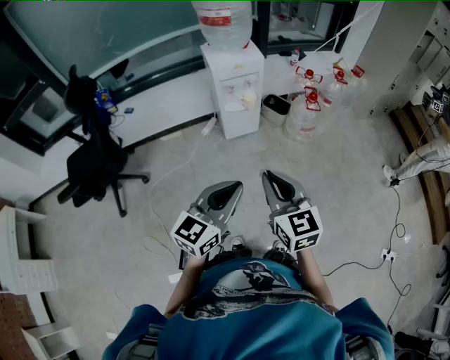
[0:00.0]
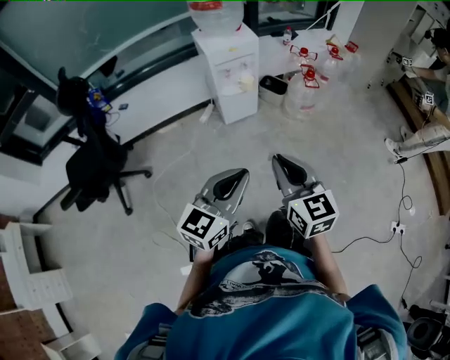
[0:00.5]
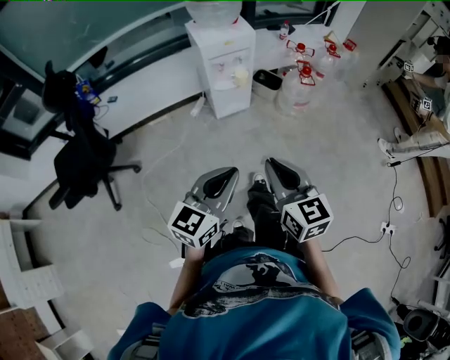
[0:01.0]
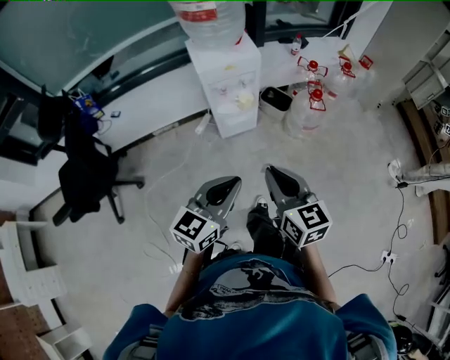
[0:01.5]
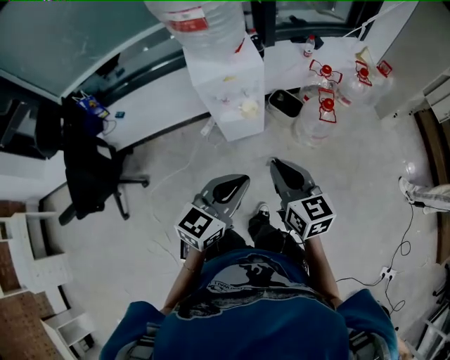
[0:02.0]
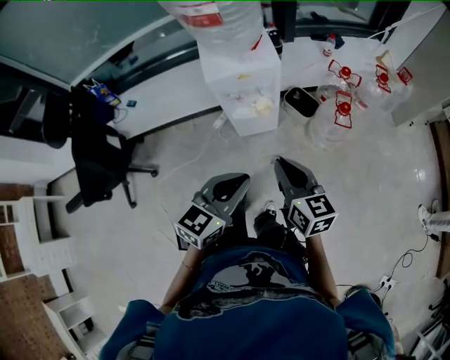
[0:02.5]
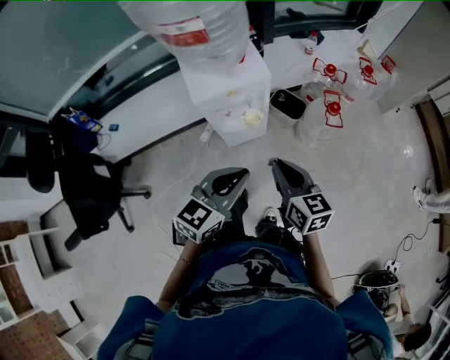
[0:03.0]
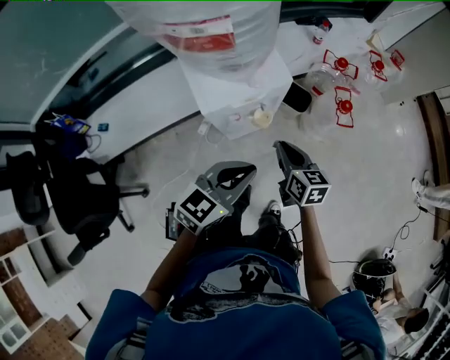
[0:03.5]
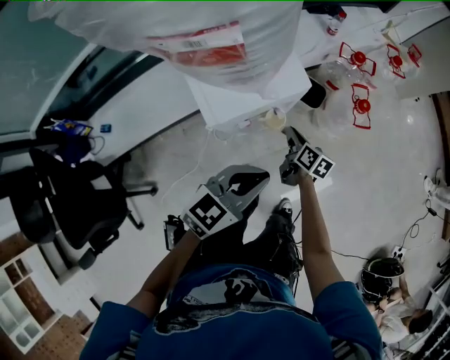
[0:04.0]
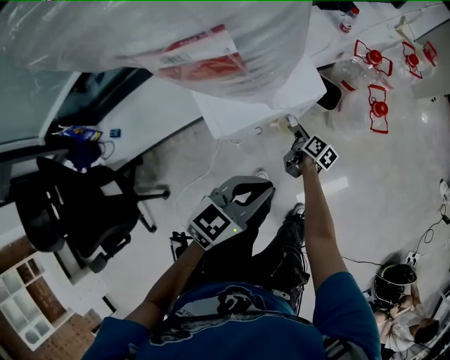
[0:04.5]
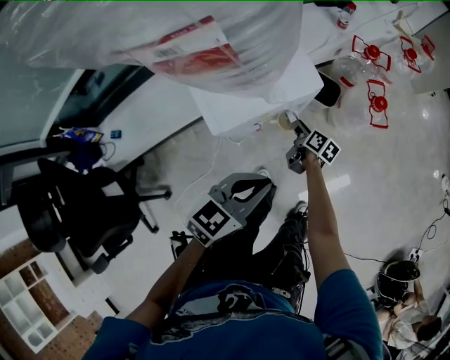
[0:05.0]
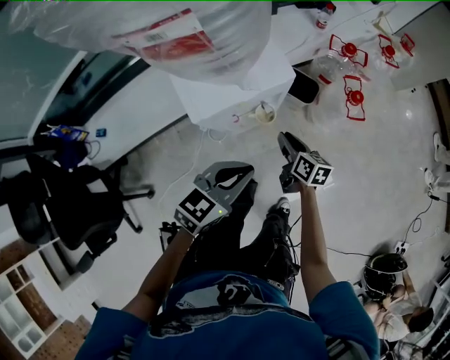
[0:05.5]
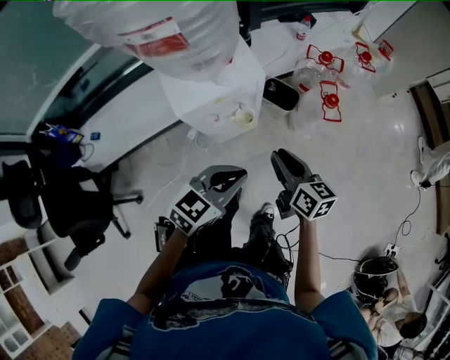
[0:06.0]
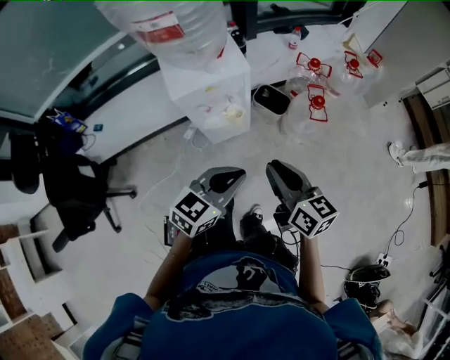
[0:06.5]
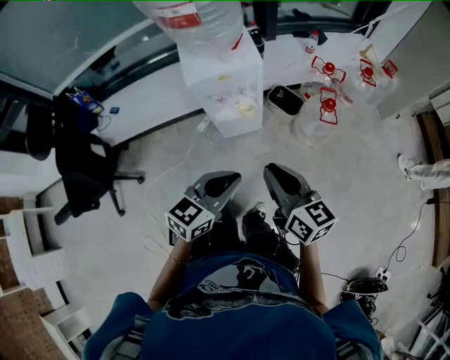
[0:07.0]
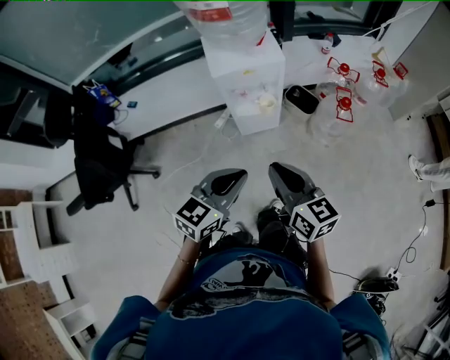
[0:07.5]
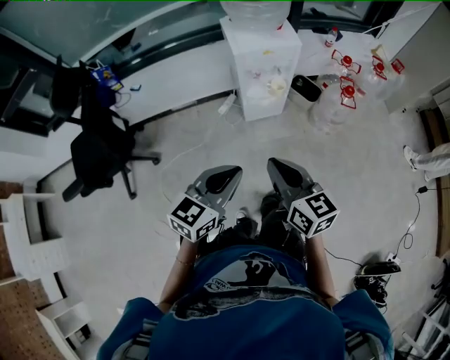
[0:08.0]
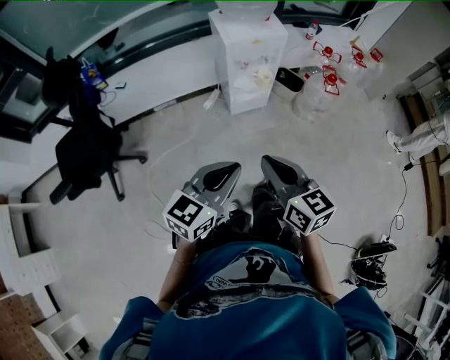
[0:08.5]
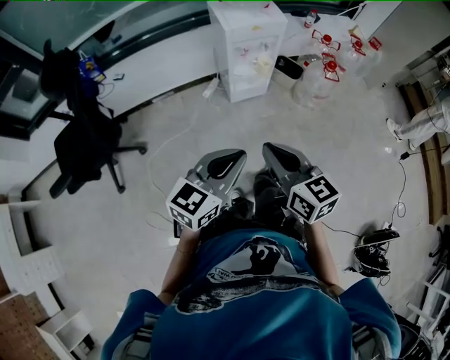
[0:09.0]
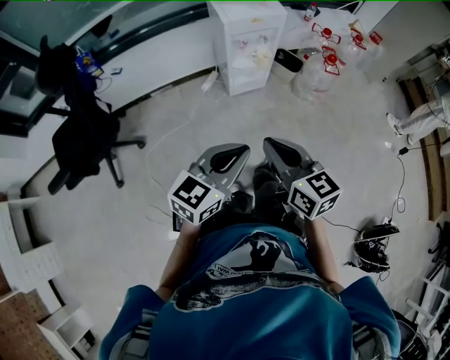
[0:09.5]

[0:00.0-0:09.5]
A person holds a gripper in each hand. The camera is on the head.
0:00.0 to 0:02.0: Both grippers move forward, about 30 cm.
0:02.0 to 0:04.0: The left gripper heads forward and to the left, covering about 25 cm, and turns by about 30 degrees, while the right gripper goes roughly 40 cm forward and downward, and rolls clockwise, seen from behind, by roughly 40 degrees.
0:04.0 to 0:05.5: The right gripper travels downward and back again, approximately 10 cm each way.
0:05.5 to 0:07.5: The right gripper shifts about 40 cm backward and upward, and turns by roughly 40 degrees; the left gripper travels backward and upward by about 25 cm, and changes its angle by roughly 20 degrees.
0:07.5 to 0:09.5: The two grippers go roughly 20 cm backward and to the left.

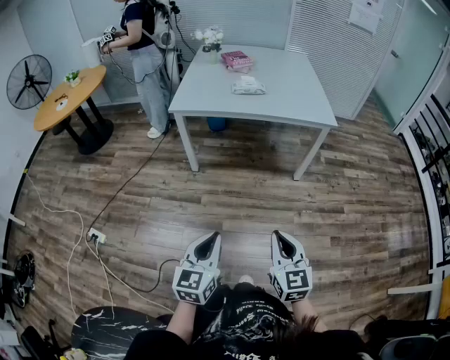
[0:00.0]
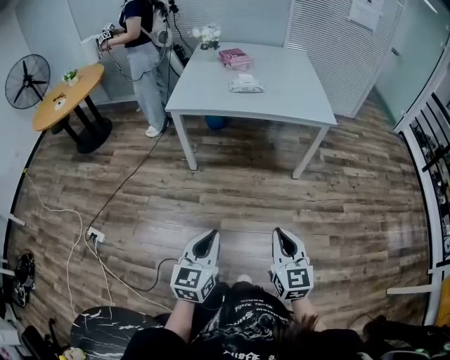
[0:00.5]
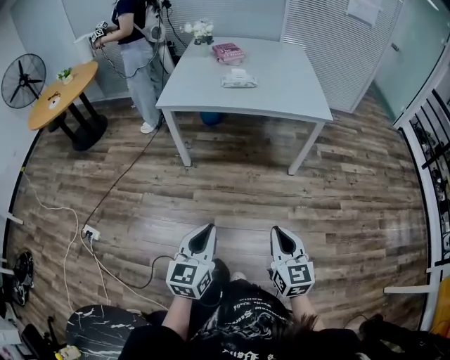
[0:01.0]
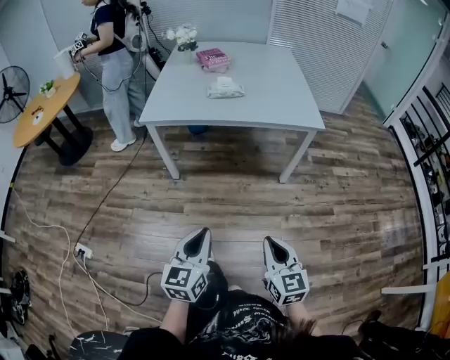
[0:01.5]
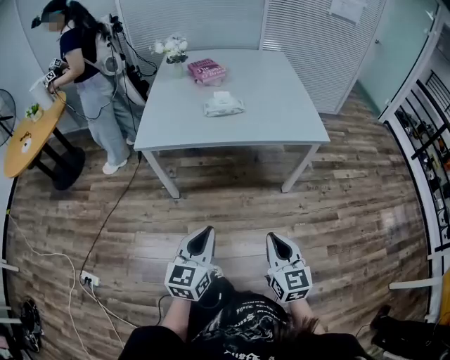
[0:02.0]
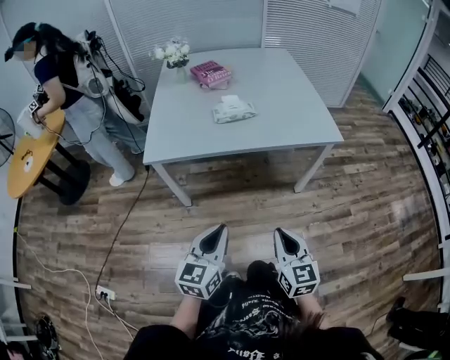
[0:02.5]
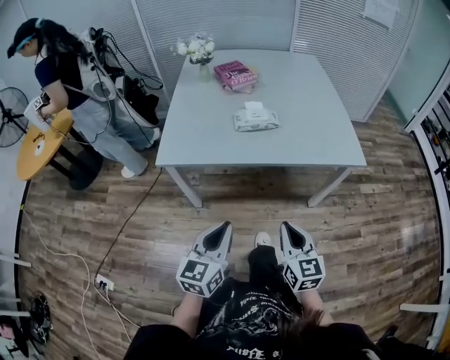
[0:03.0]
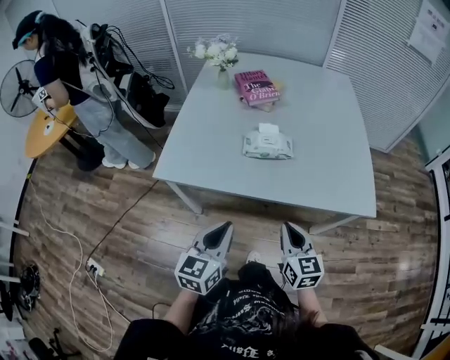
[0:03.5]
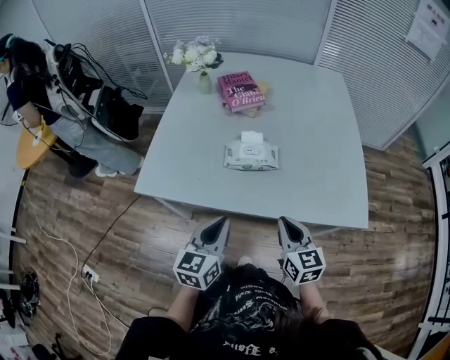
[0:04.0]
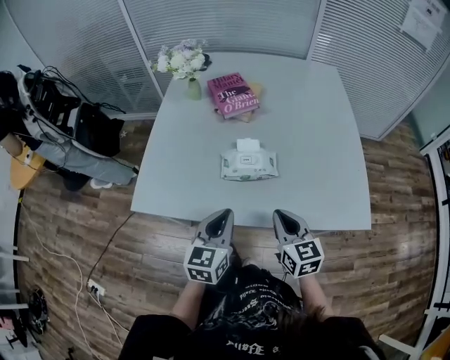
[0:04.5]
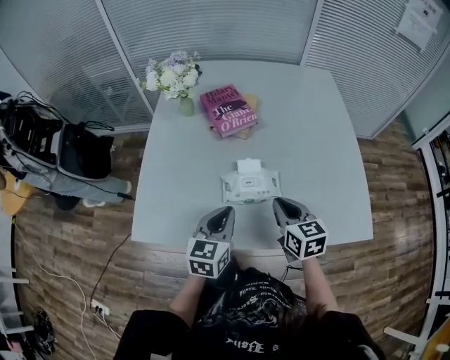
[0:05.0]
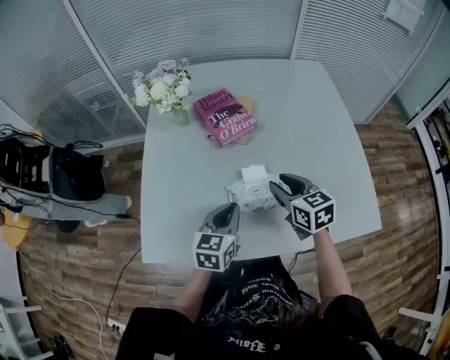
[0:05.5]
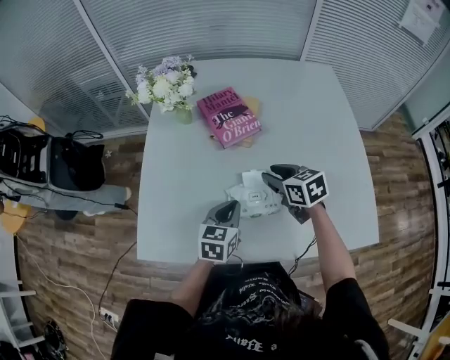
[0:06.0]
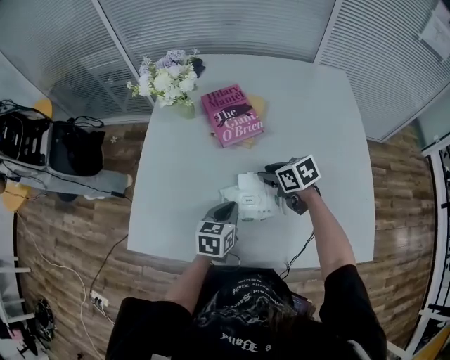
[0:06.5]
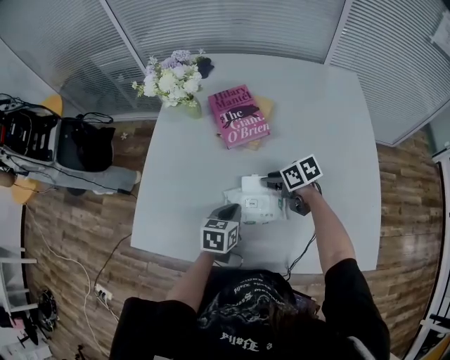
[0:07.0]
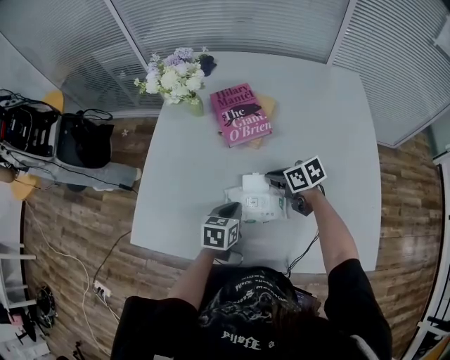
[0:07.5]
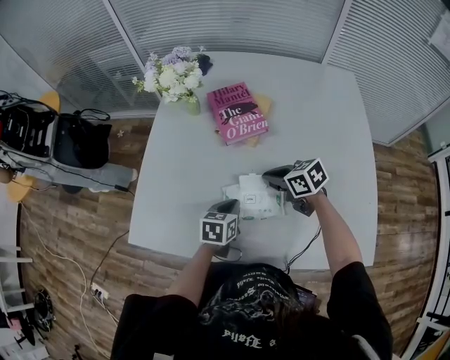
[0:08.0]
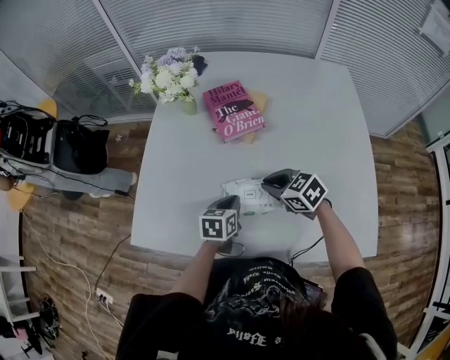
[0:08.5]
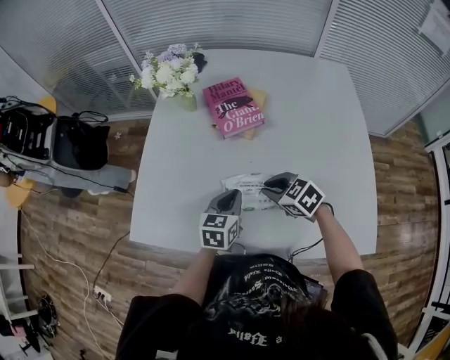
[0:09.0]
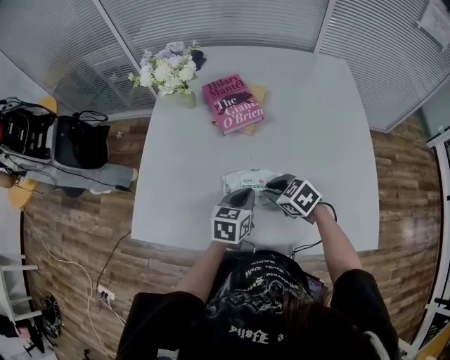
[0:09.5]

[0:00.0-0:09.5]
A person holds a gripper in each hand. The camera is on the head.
0:00.0 to 0:02.0: The two grippers go some 25 cm forward.
0:02.0 to 0:04.0: Both grippers move forward, about 40 cm.
0:04.0 to 0:05.5: The two grippers go about 25 cm forward. The right gripper opens up.
0:05.5 to 0:07.5: Both grippers move downward, some 10 cm. The left gripper swivels approximately 20 degrees; the right gripper rotates approximately 40 degrees, and closes up.
0:07.5 to 0:09.5: The left gripper moves roughly 5 cm, while the right gripper is displaced backward by some 10 cm, and swivels approximately 30 degrees.

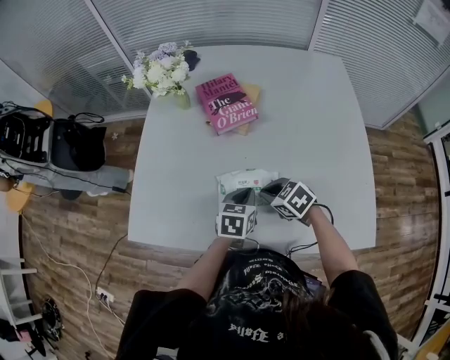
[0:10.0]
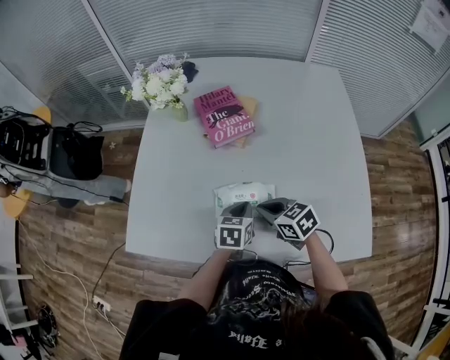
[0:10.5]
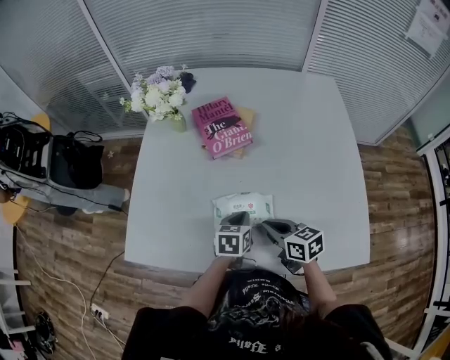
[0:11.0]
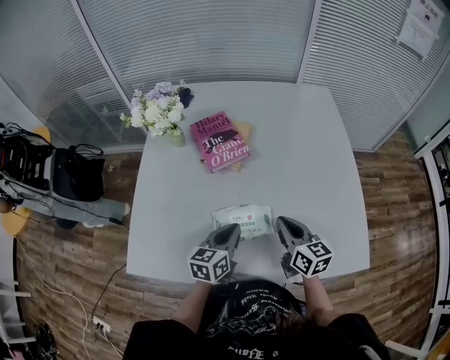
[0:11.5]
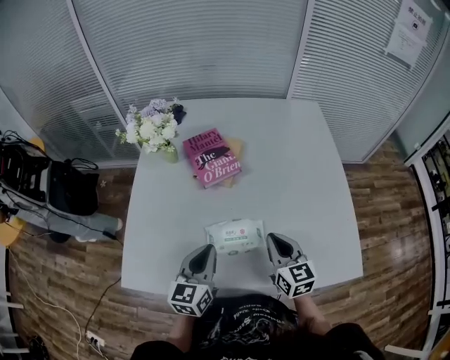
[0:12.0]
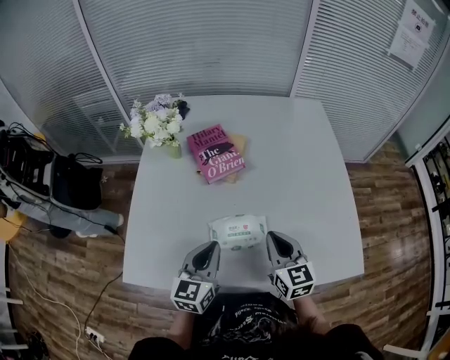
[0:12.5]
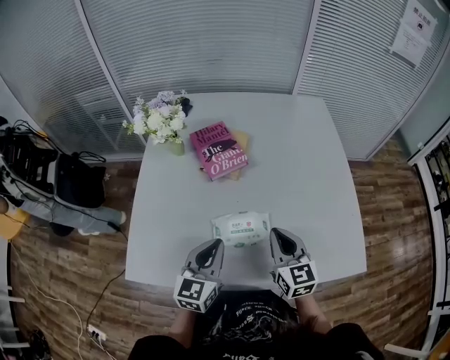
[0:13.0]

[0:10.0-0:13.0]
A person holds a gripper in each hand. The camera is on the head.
0:10.0 to 0:11.5: The right gripper travels upward and to the right by approximately 15 cm, and tips its fingers upward by approximately 30 degrees, while the left gripper goes roughly 5 cm upward.
0:11.5 to 0:13.0: The left gripper travels upward by roughly 5 cm, and turns by approximately 20 degrees. Meanwhile the right gripper moves approximately 5 cm, and changes its angle by about 20 degrees.

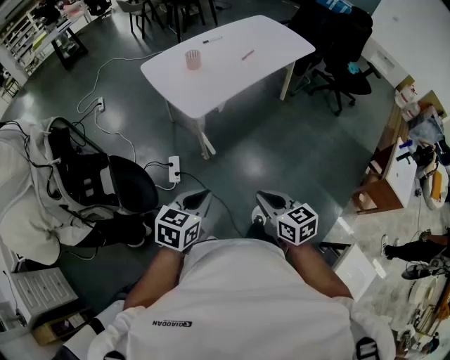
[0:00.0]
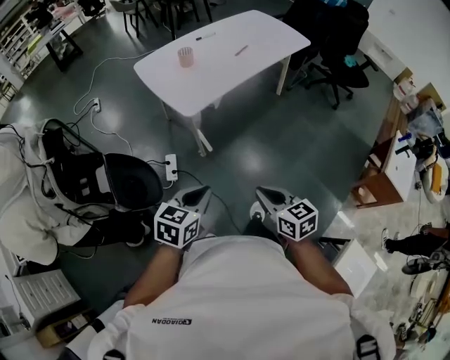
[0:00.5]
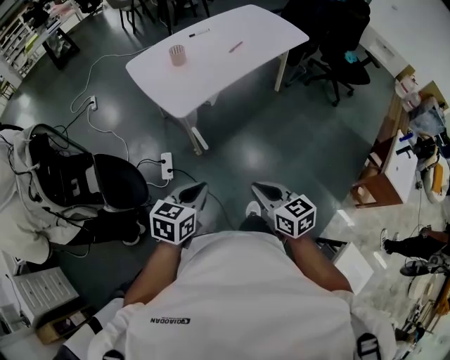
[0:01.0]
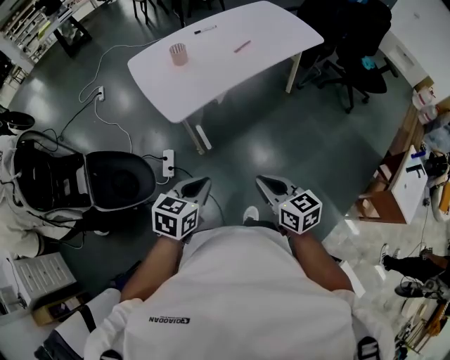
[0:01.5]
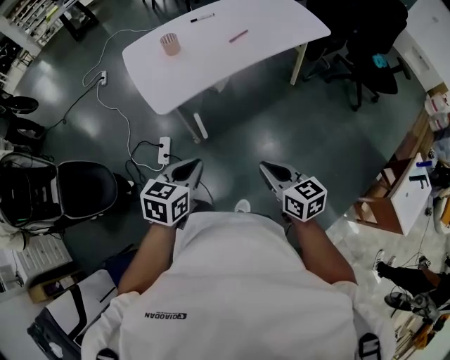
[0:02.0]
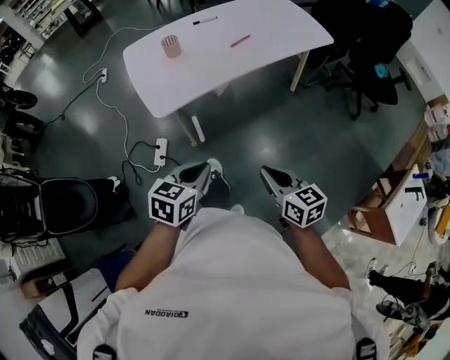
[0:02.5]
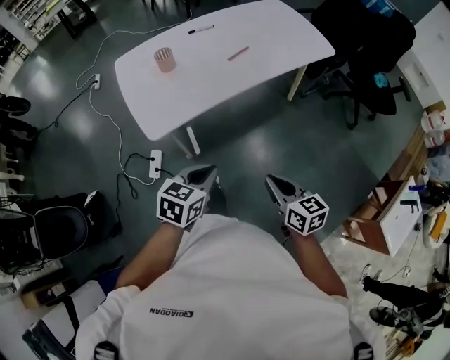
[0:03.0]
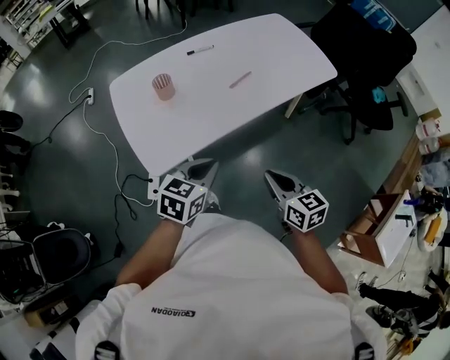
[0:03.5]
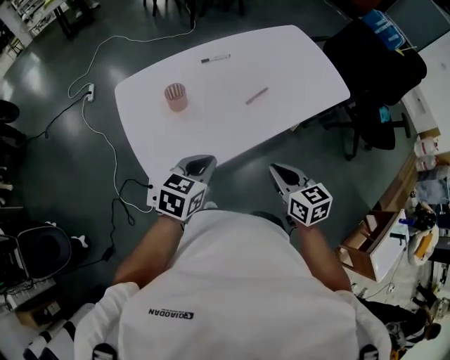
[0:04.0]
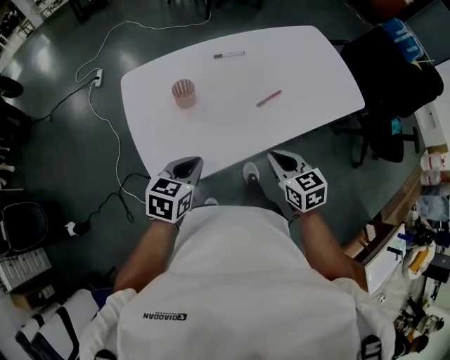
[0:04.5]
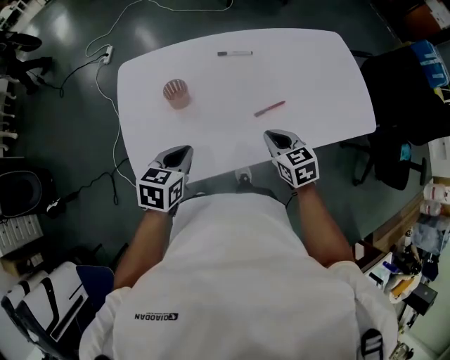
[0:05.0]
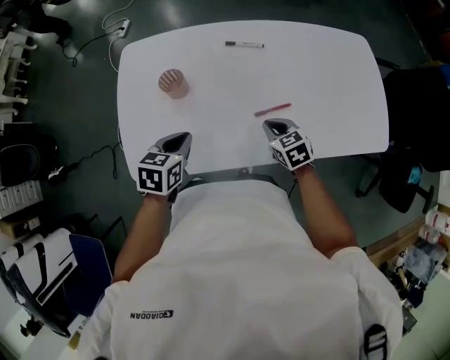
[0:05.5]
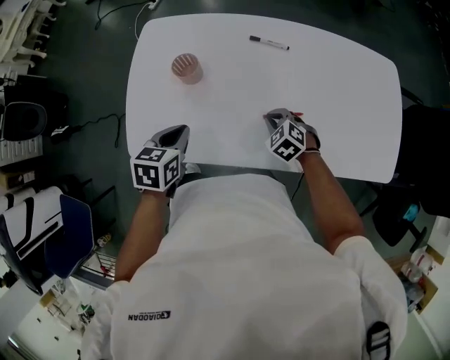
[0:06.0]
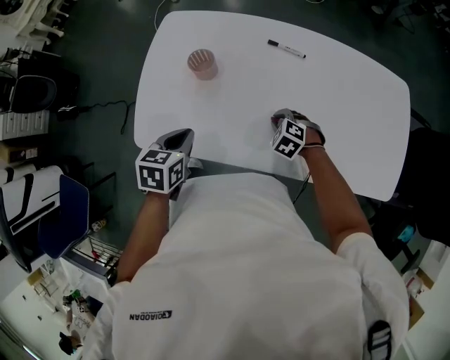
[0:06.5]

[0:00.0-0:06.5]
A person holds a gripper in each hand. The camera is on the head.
0:00.0 to 0:02.0: The two grippers go about 30 cm to the right and forward.
0:02.0 to 0:04.5: The two grippers travel together, forward, about 40 cm. The right gripper changes its angle by some 20 degrees.
0:04.5 to 0:06.5: The right gripper shifts by some 35 cm, and rotates around the line of its fingers by approximately 60 degrees, counterclockwise from behind; the left gripper moves approximately 15 cm, and rotates roughly 40 degrees.
